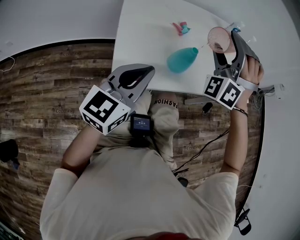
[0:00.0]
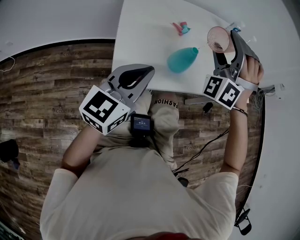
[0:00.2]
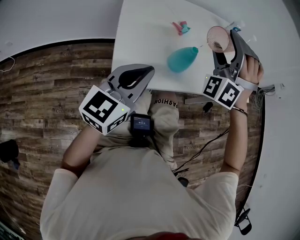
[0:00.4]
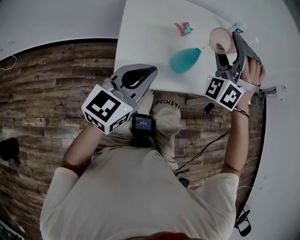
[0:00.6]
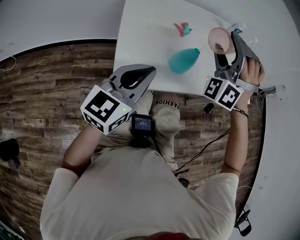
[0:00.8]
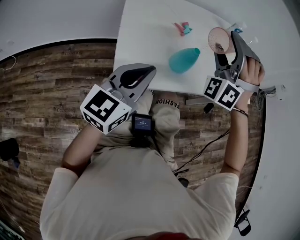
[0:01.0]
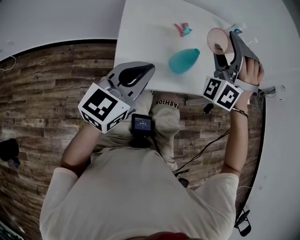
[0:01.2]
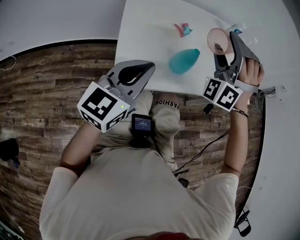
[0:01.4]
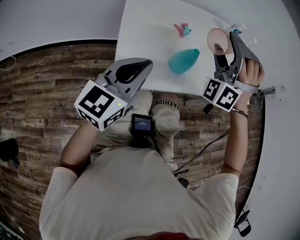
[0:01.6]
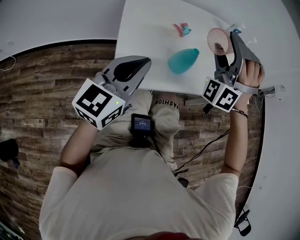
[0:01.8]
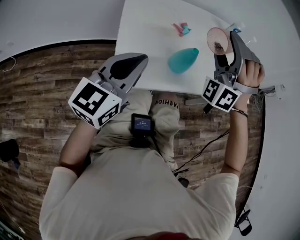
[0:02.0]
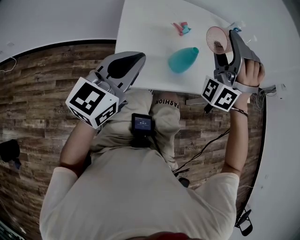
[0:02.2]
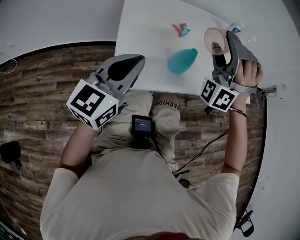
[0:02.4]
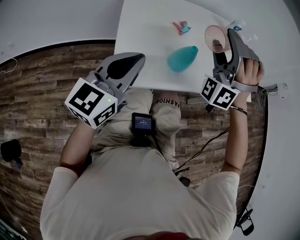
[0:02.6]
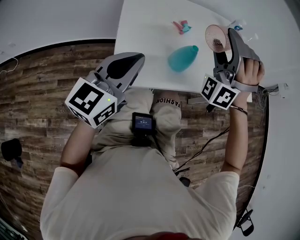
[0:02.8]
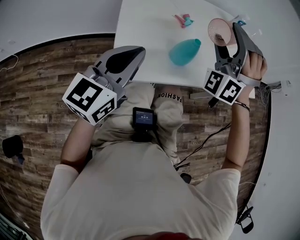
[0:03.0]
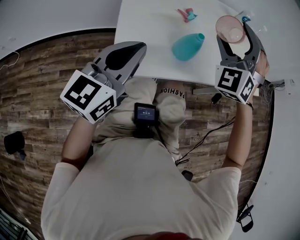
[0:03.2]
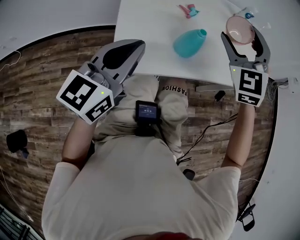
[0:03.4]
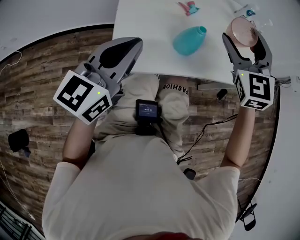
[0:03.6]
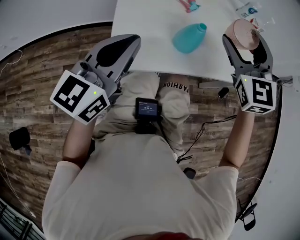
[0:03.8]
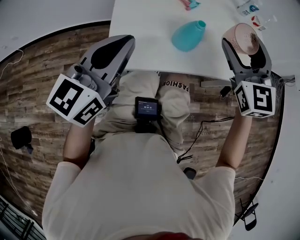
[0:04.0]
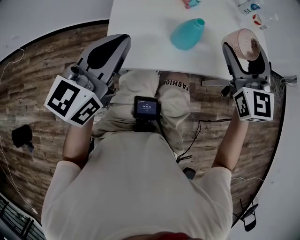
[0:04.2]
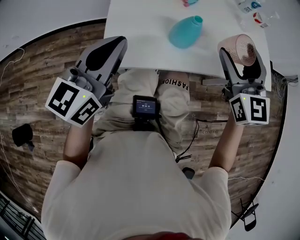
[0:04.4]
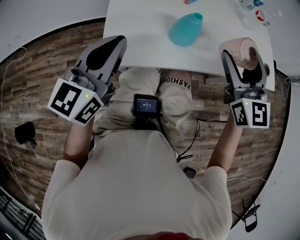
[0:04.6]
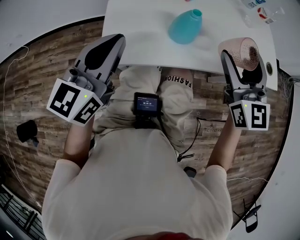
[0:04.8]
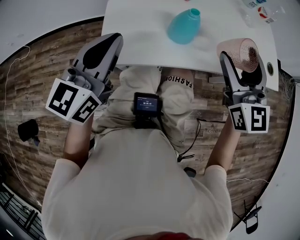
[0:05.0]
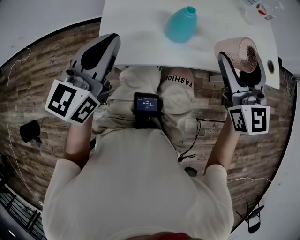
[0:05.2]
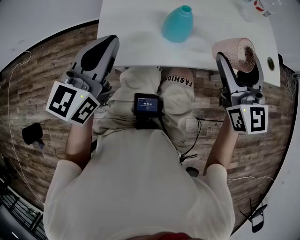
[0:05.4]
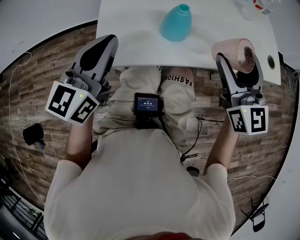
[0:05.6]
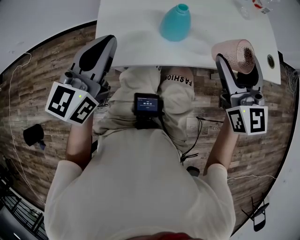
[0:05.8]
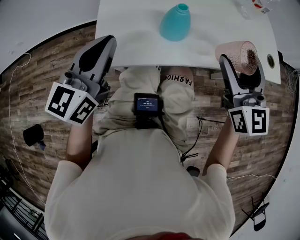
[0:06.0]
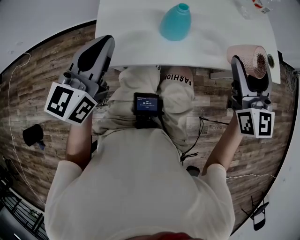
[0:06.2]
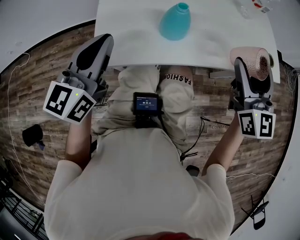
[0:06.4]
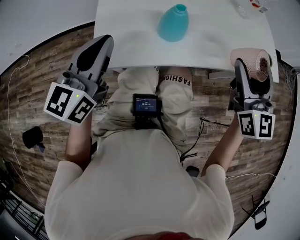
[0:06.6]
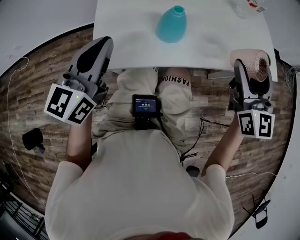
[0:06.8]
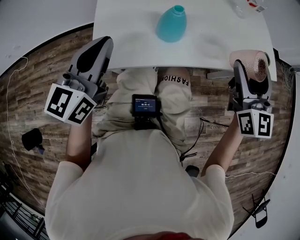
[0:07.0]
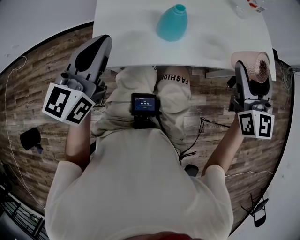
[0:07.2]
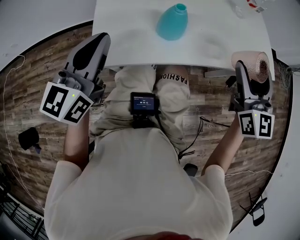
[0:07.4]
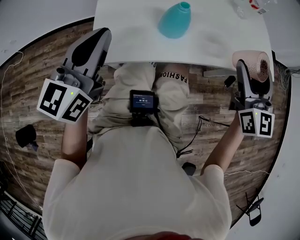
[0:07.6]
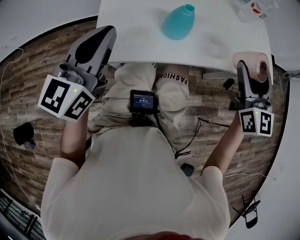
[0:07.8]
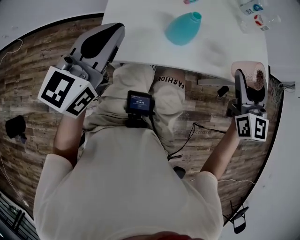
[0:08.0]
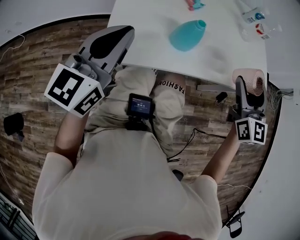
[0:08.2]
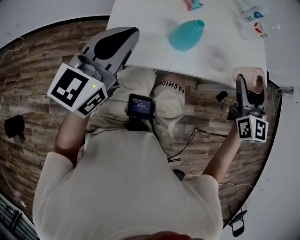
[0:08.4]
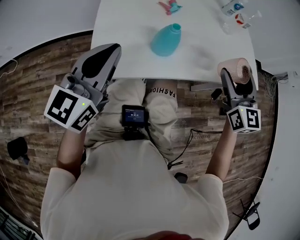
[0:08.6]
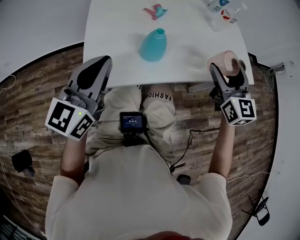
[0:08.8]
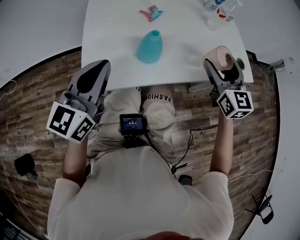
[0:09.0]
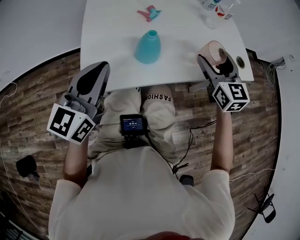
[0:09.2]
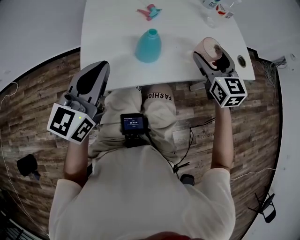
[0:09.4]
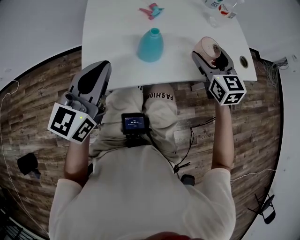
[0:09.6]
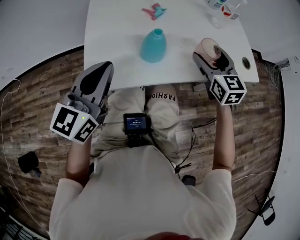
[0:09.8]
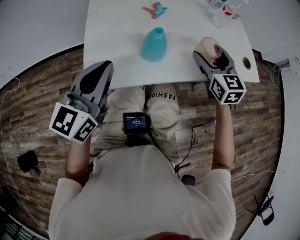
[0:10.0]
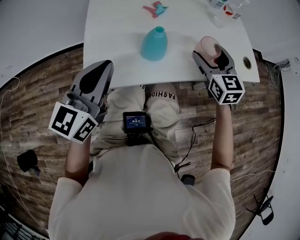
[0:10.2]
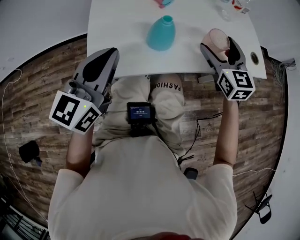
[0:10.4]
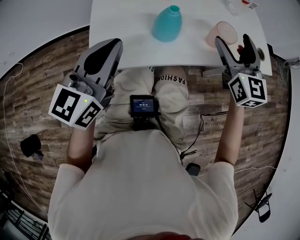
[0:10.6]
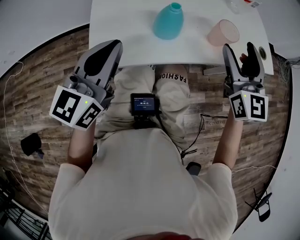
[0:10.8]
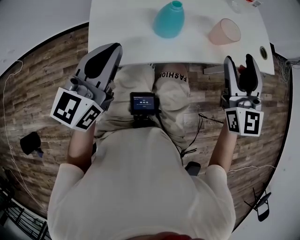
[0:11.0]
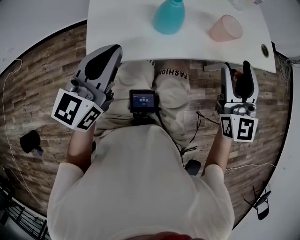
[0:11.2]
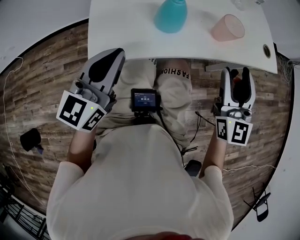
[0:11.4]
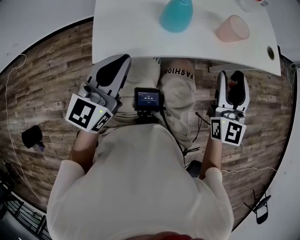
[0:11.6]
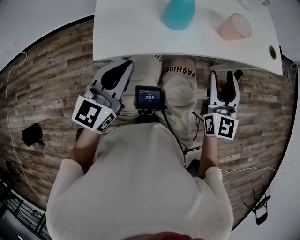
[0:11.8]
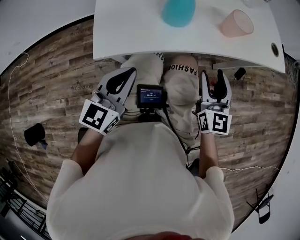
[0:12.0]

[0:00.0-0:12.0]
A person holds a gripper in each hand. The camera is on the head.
0:00.0 to 0:03.0: The grippers make only small movements.
0:03.0 to 0:04.4: The right gripper moves to the right and downward, roughly 10 cm, and twists about 80 degrees clockwise, seen from behind.
0:04.4 to 0:06.0: The right gripper shifts by some 5 cm.
0:06.0 to 0:07.6: The right gripper moves to the right, about 5 cm.
0:07.6 to 0:09.0: The right gripper shifts approximately 5 cm forward.
0:09.0 to 0:10.4: The right gripper moves approximately 5 cm.
0:10.4 to 0:12.0: The left gripper shifts roughly 15 cm downward and backward. The right gripper heads backward and downward, covering some 20 cm, and closes up.

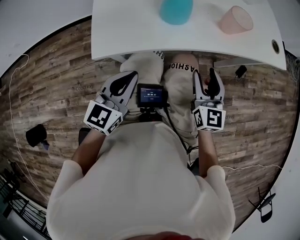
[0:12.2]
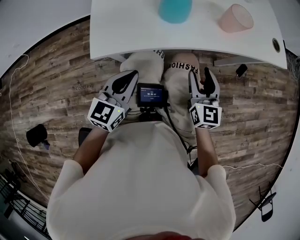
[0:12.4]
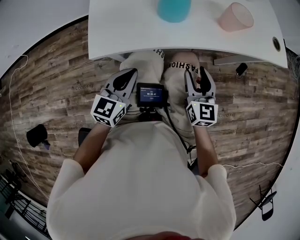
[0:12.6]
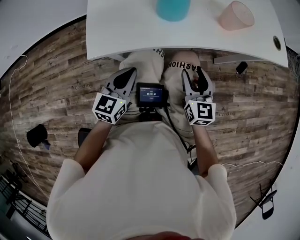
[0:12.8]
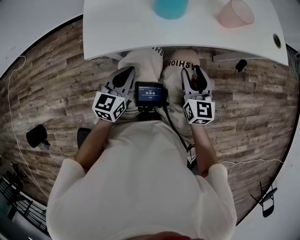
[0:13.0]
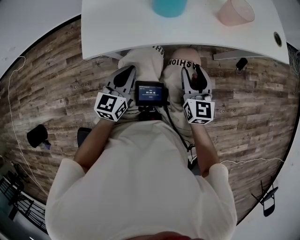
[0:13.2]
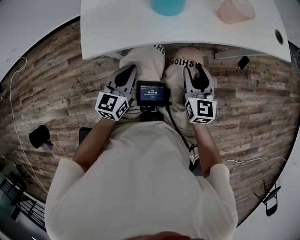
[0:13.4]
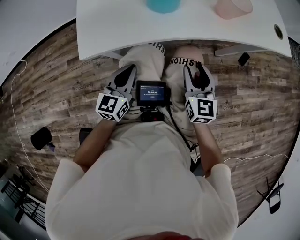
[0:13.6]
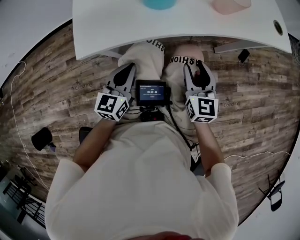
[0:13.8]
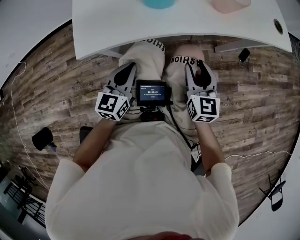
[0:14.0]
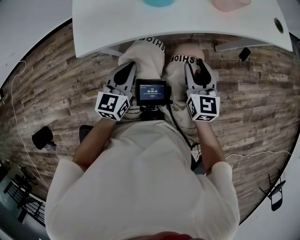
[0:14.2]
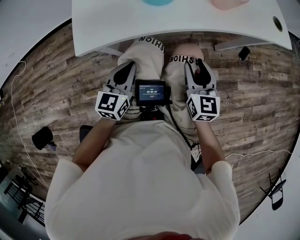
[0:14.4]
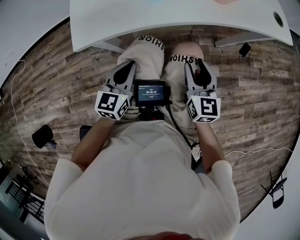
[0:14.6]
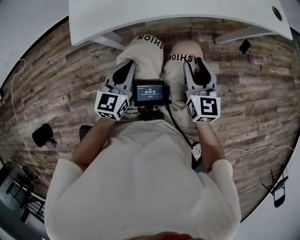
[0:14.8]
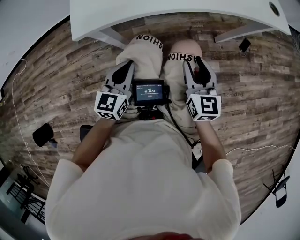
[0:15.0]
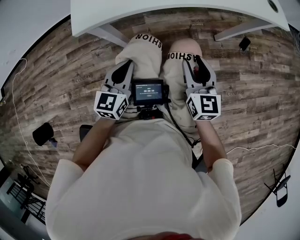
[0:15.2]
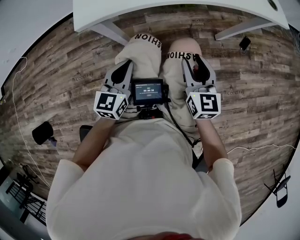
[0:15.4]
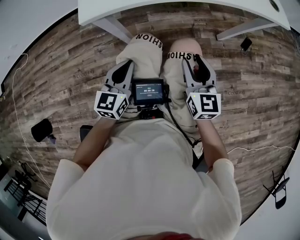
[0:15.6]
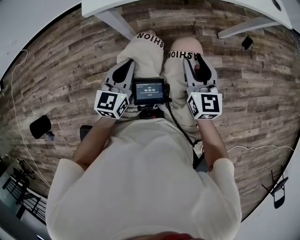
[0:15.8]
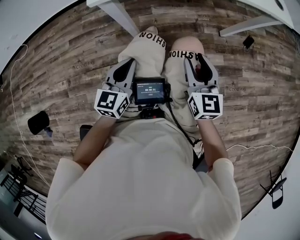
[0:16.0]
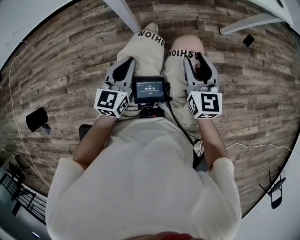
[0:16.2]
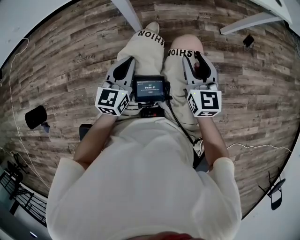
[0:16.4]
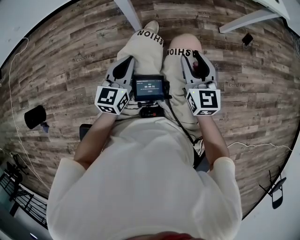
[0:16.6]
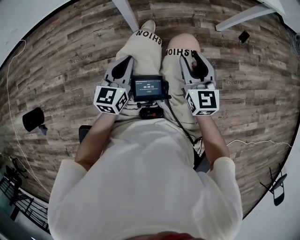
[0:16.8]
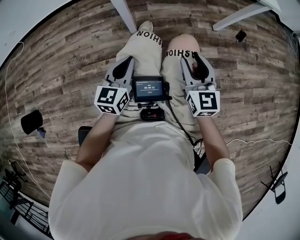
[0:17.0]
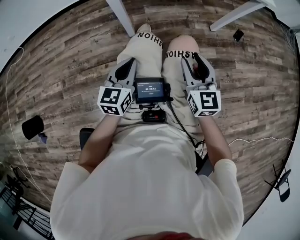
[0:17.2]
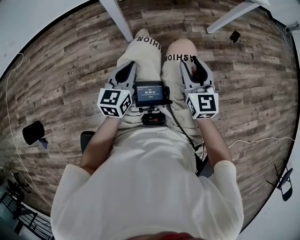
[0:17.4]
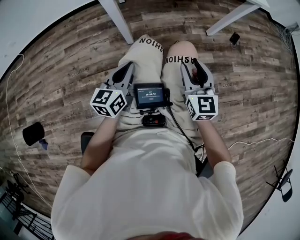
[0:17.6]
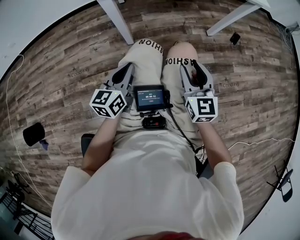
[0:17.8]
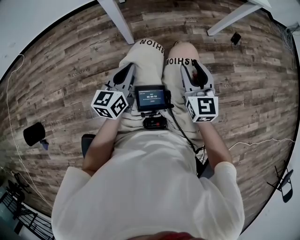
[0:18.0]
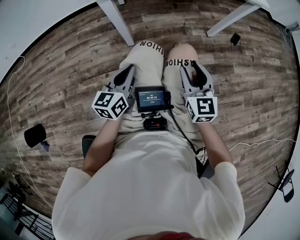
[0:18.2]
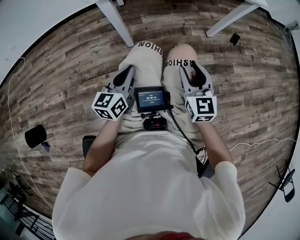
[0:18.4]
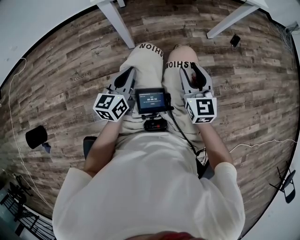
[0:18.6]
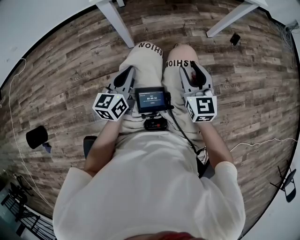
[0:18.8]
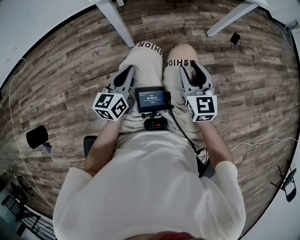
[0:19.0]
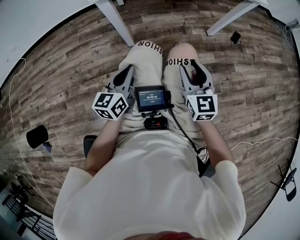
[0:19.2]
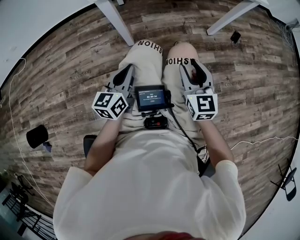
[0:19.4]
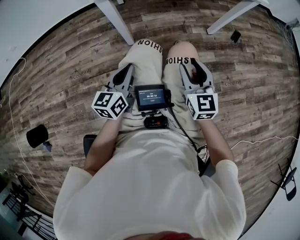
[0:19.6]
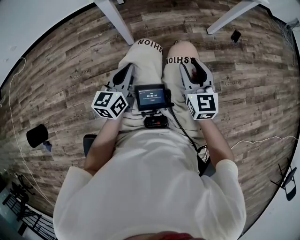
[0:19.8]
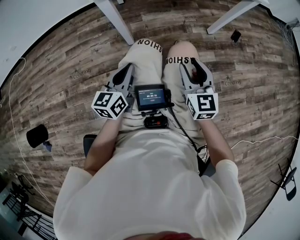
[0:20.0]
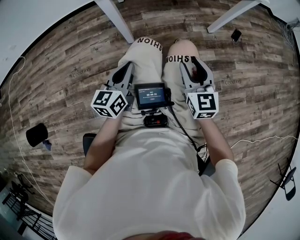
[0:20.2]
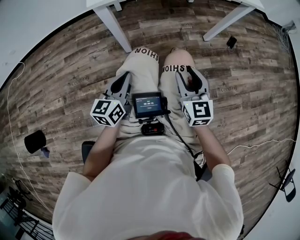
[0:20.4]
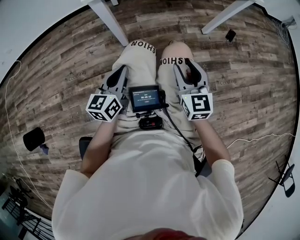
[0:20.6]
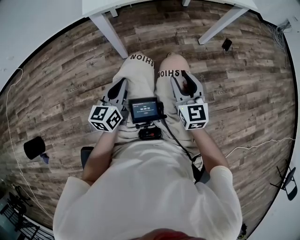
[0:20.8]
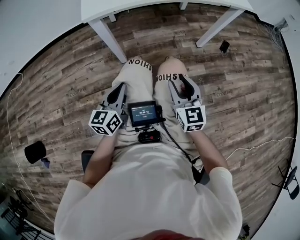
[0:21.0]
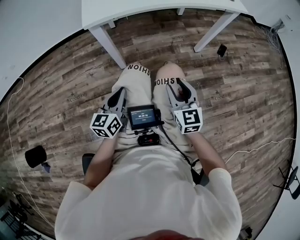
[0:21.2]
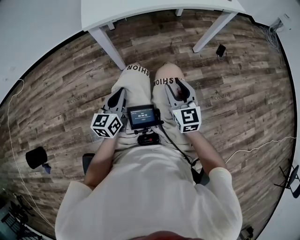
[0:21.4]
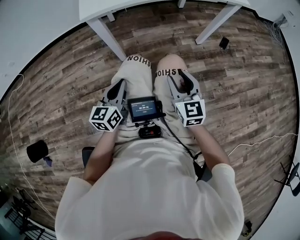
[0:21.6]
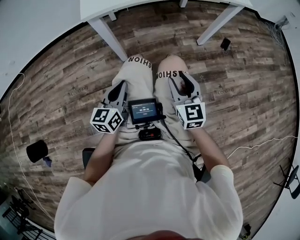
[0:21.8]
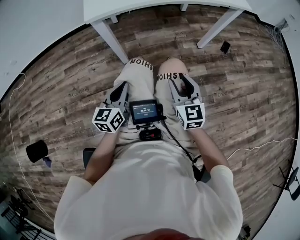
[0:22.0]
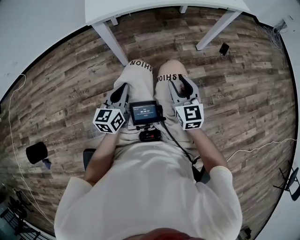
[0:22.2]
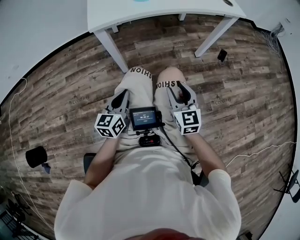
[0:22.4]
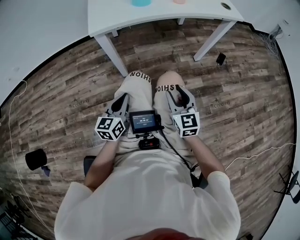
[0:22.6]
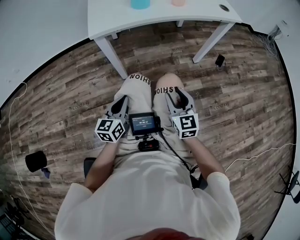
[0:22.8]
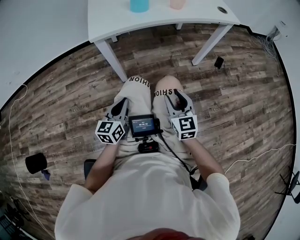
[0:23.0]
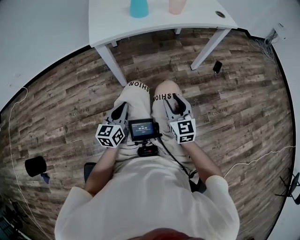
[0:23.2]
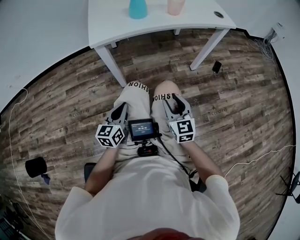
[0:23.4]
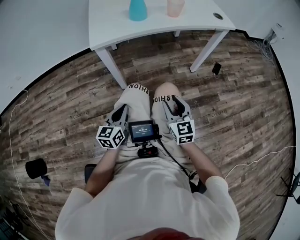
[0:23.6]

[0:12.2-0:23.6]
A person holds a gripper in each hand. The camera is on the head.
0:12.2 to 0:13.6: The right gripper is displaced downward by about 5 cm, while the left gripper heads downward, covering some 10 cm.
0:13.6 to 0:15.0: Both grippers move backward, about 5 cm.
0:15.0 to 0:16.4: The two grippers go some 15 cm backward.
0:16.4 to 0:17.8: There are only small adjustments of the grippers.
0:17.8 to 0:20.8: Neither gripper changes place.
0:20.8 to 0:23.6: The two grippers keep their place.

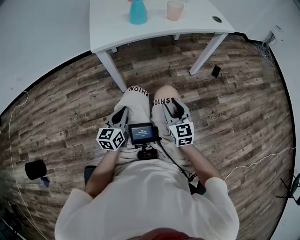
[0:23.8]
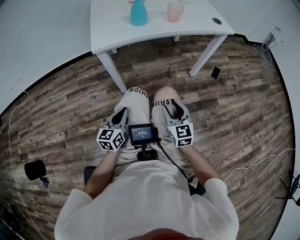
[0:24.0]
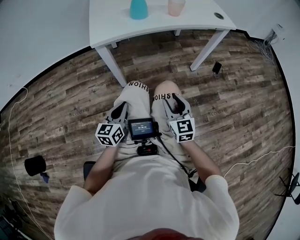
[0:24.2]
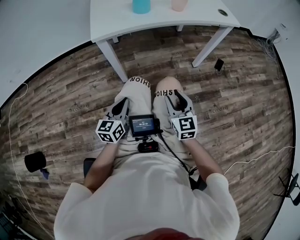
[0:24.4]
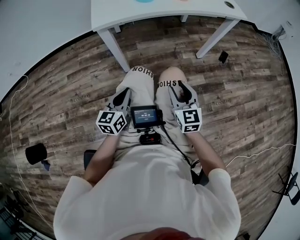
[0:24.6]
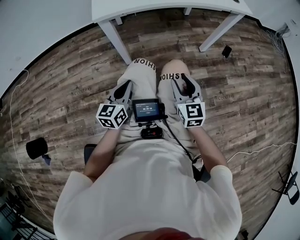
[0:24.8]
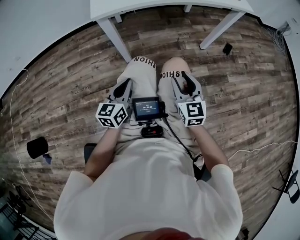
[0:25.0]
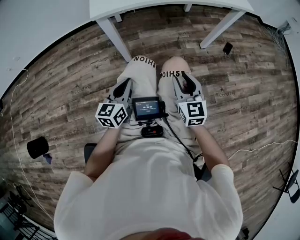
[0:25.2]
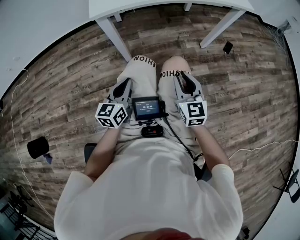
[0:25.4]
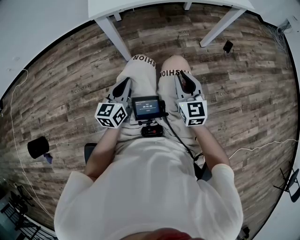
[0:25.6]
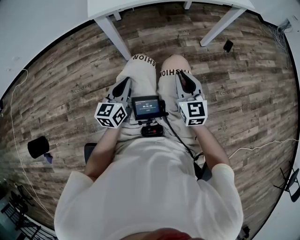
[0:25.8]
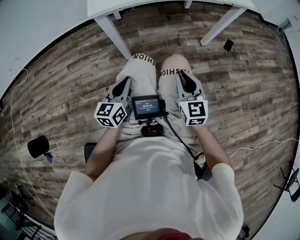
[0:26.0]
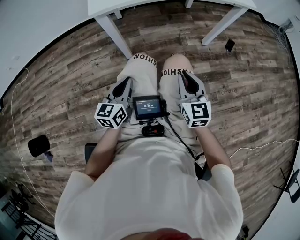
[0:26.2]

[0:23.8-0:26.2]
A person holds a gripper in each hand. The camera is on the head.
0:23.8 to 0:26.2: The two grippers keep their place.
